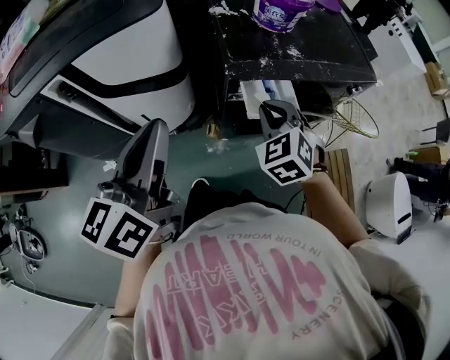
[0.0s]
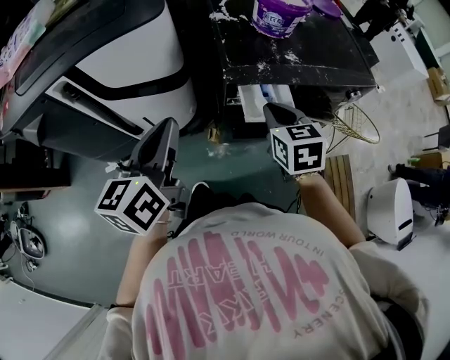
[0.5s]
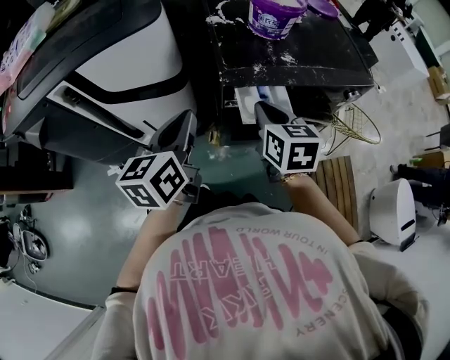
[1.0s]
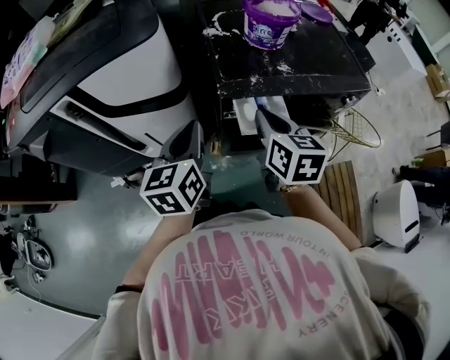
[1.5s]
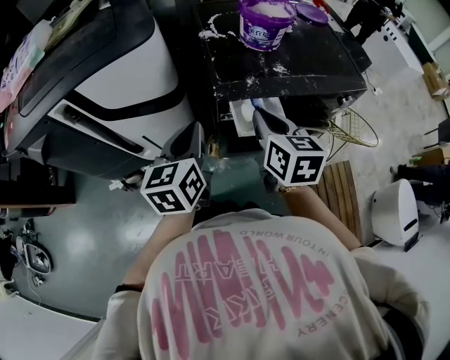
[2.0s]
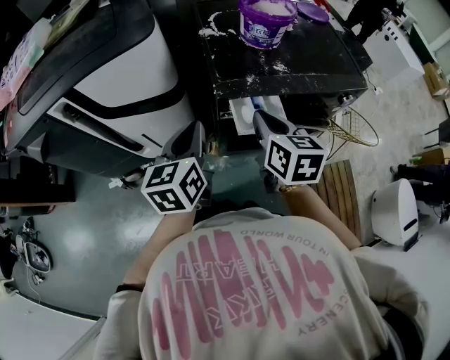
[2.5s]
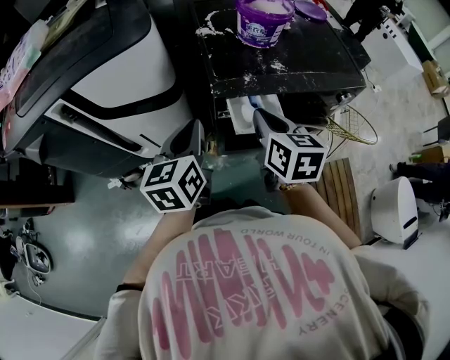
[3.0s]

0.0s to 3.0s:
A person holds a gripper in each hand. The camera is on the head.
0.0s to 1.5s: The right gripper moves roughly 5 cm, and rolls clockwise, seen from behind, by roughly 50 degrees. The left gripper shifts some 15 cm downward, to the right and forward.
1.5s to 3.0s: The grippers move only a little.

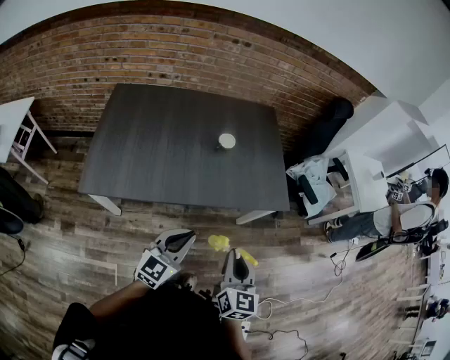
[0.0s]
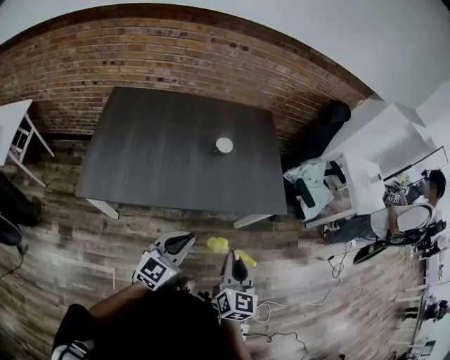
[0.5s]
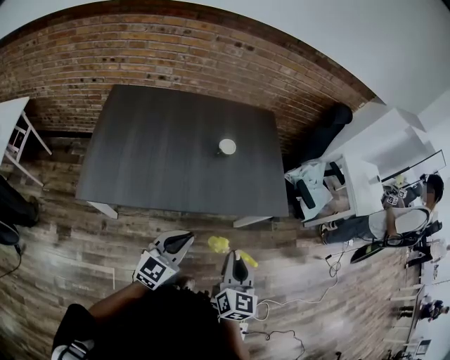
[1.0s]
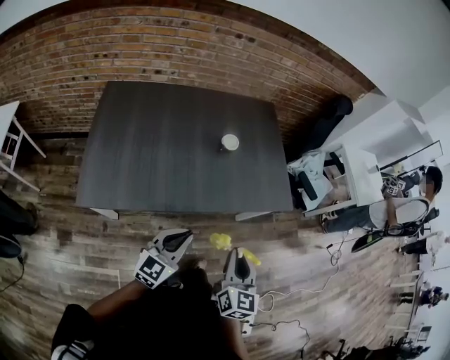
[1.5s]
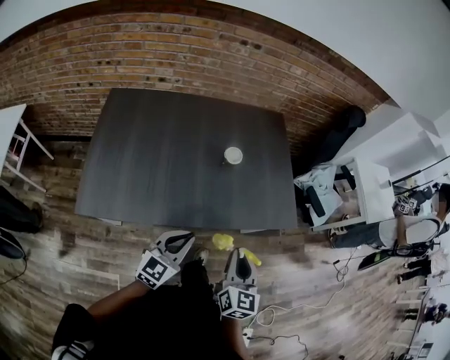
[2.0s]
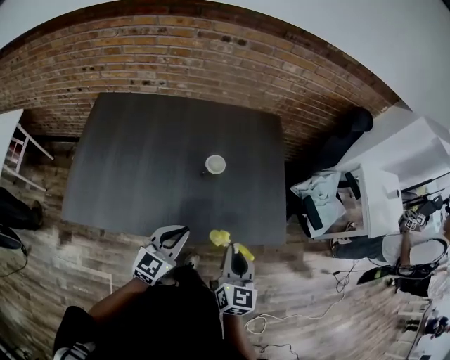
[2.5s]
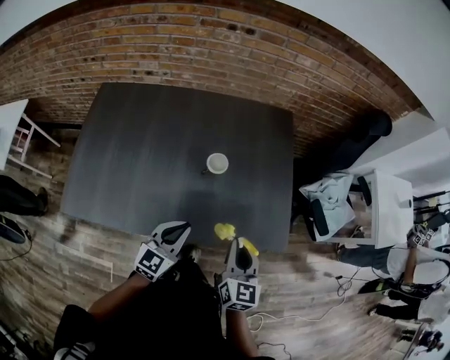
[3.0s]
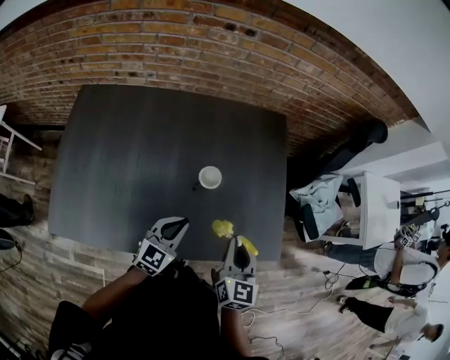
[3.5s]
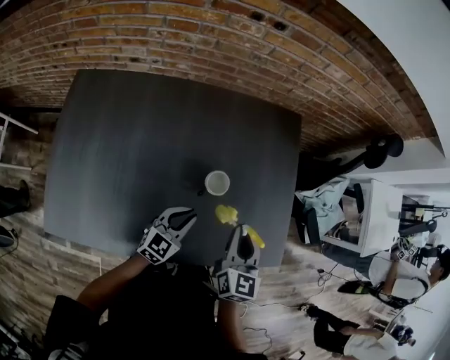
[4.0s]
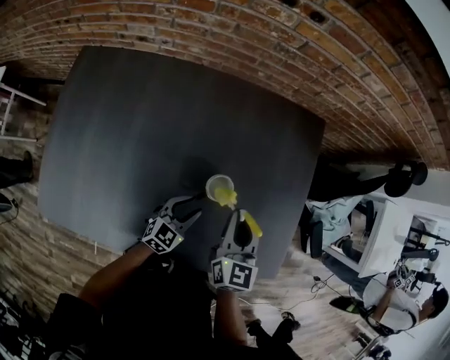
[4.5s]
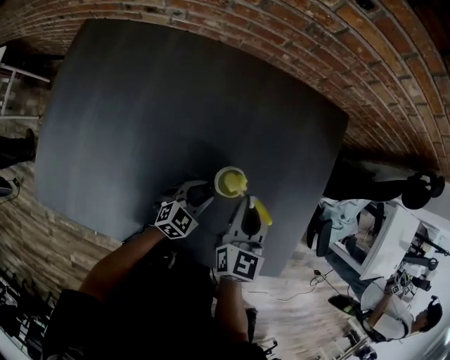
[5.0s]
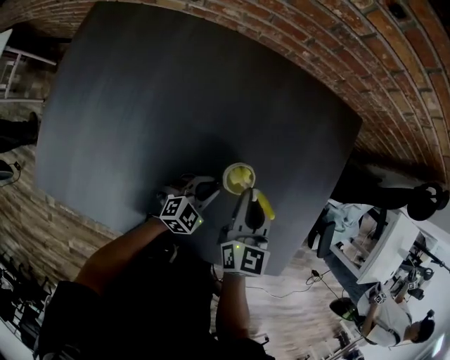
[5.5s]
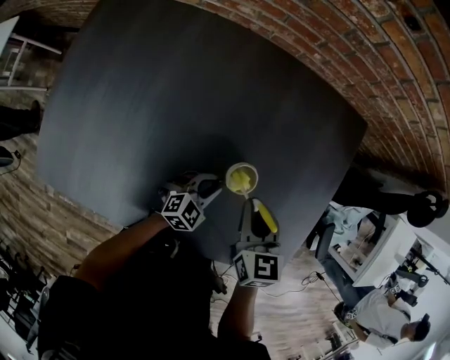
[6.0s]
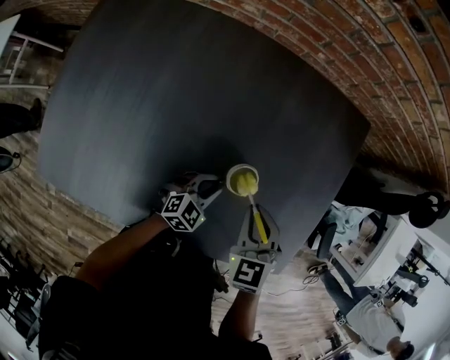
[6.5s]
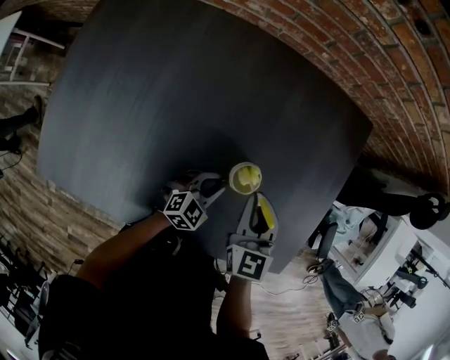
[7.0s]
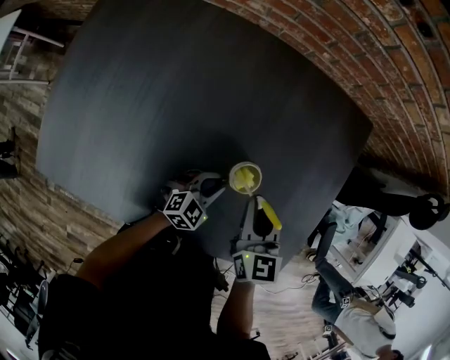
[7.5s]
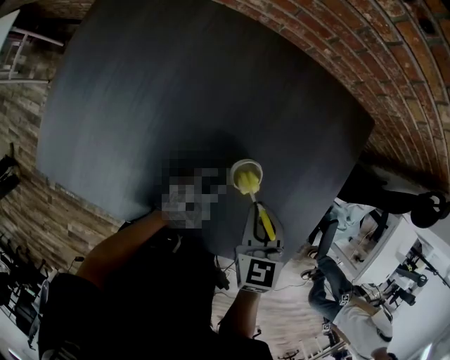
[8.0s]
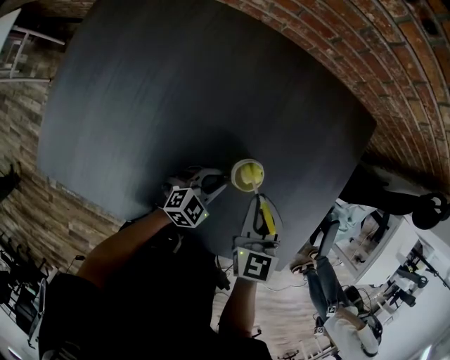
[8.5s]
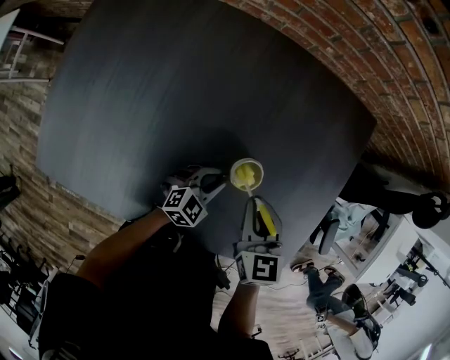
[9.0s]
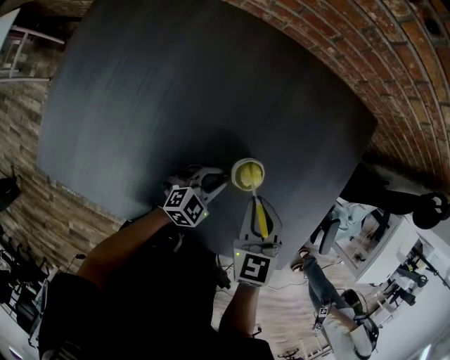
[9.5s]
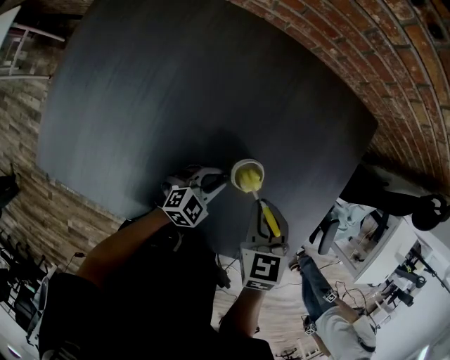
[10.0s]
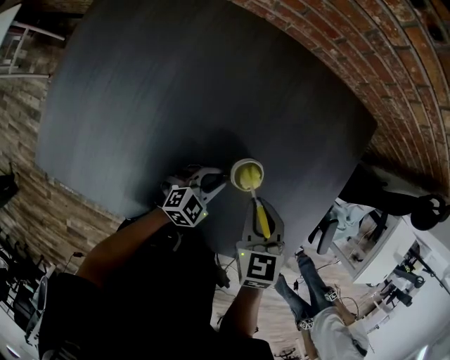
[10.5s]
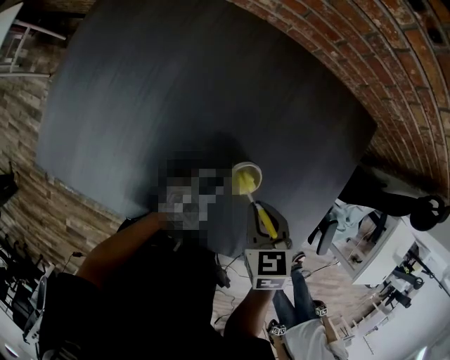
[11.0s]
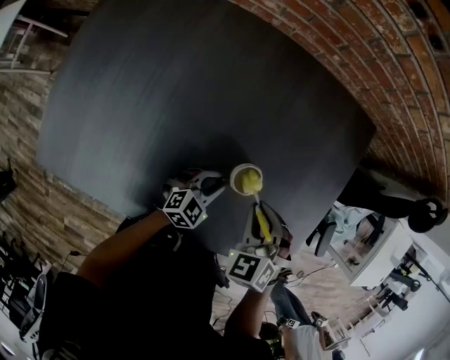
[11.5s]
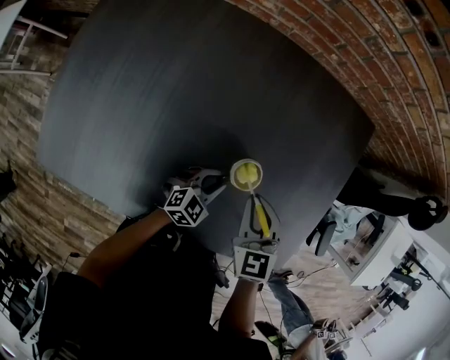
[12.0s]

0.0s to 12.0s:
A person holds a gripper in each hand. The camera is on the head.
0.0s to 2.0s: Both grippers travel together forward and to the left, approximately 15 cm.
2.0s to 4.0s: The two grippers go roughly 35 cm forward.
4.0s to 6.0s: The right gripper is displaced downward, forward and to the left by some 15 cm, and rotates roughly 30 degrees; the left gripper is displaced downward and forward by roughly 20 cm.
8.0s to 10.0s: There are only small adjustments of the grippers.

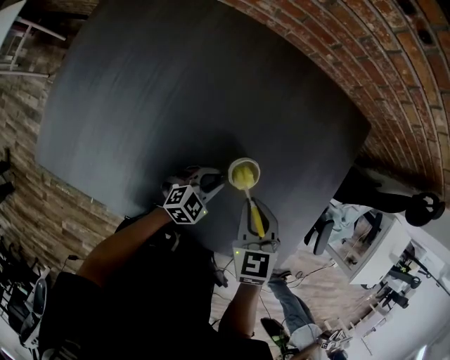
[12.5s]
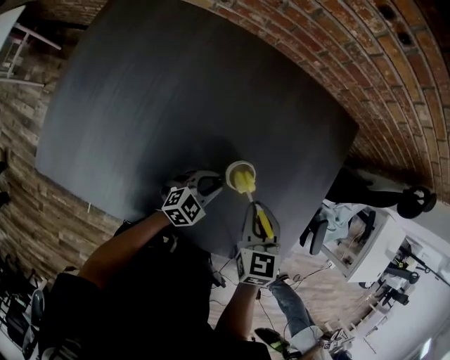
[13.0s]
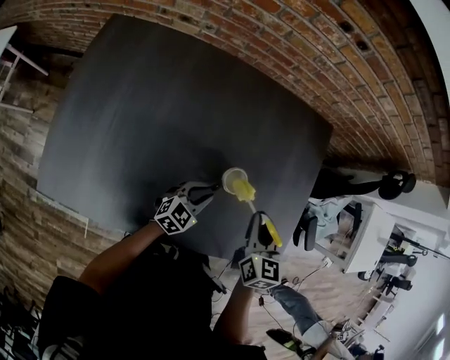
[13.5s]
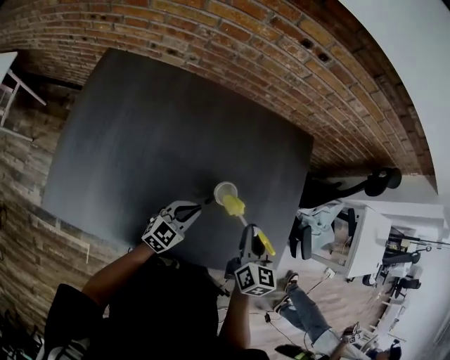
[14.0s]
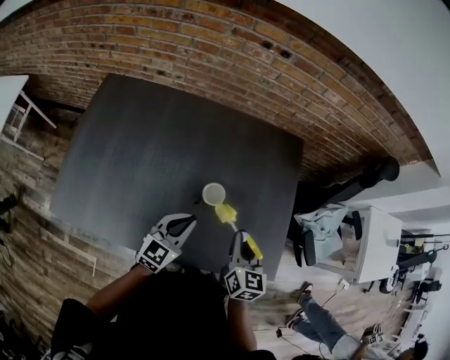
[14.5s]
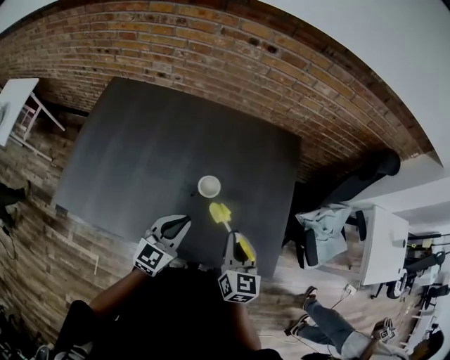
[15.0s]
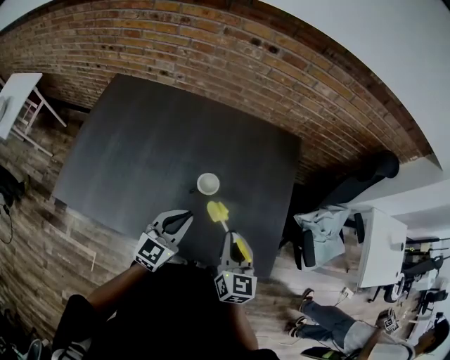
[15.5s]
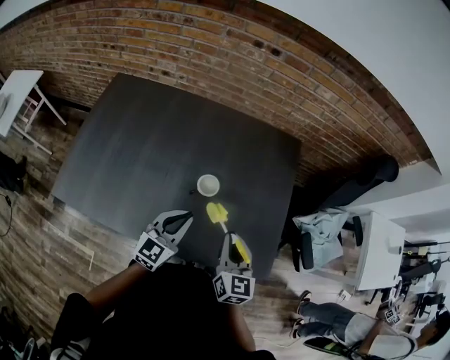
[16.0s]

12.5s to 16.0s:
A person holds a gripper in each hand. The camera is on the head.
12.5s to 14.5s: The left gripper moves upward, about 25 cm, and rotates approximately 30 degrees. The right gripper goes approximately 20 cm upward, to the right and backward, and swivels about 40 degrees.
14.5s to 16.0s: The right gripper moves backward, some 5 cm; the left gripper changes place by approximately 5 cm.

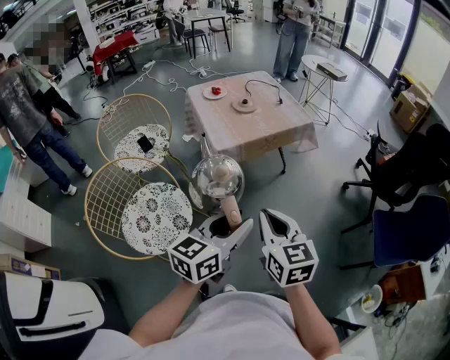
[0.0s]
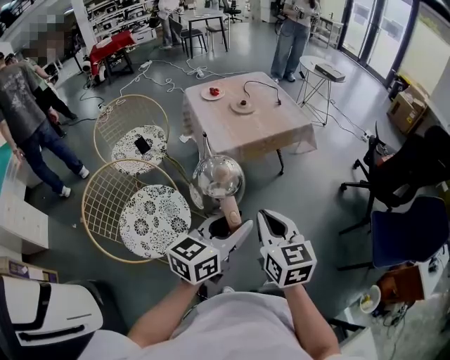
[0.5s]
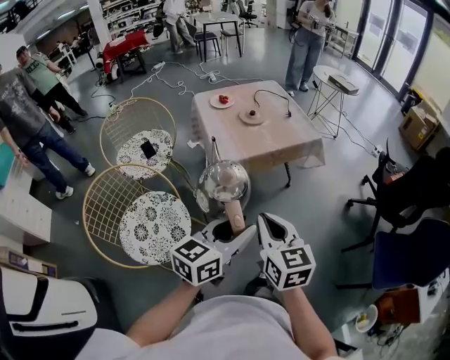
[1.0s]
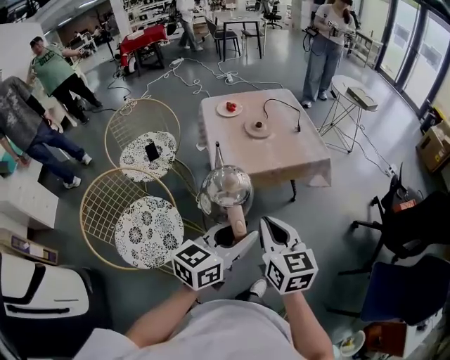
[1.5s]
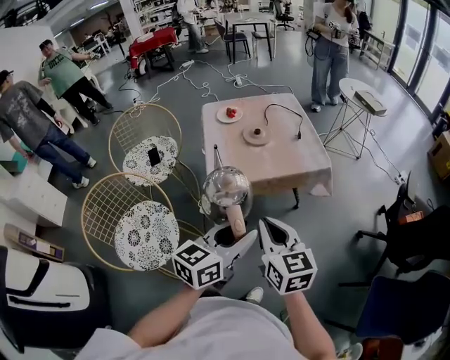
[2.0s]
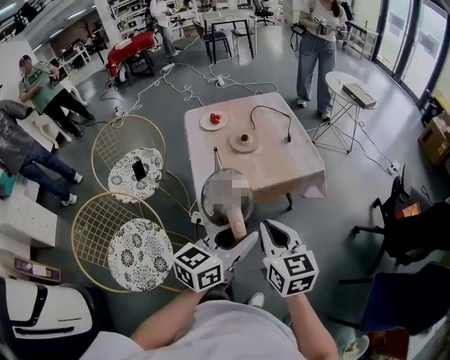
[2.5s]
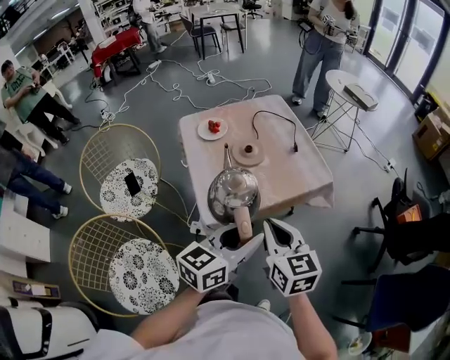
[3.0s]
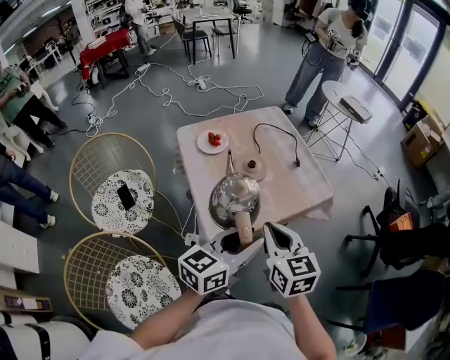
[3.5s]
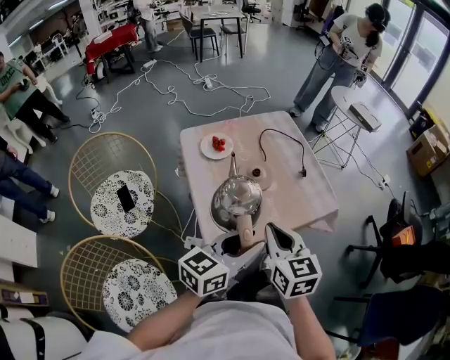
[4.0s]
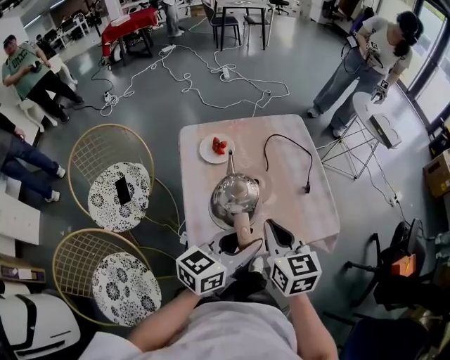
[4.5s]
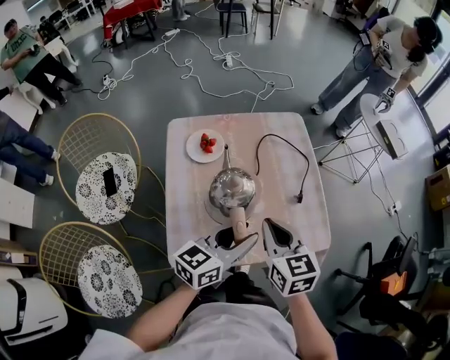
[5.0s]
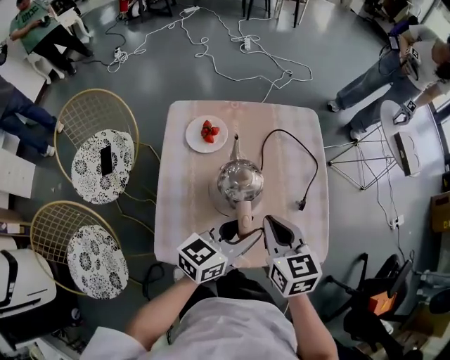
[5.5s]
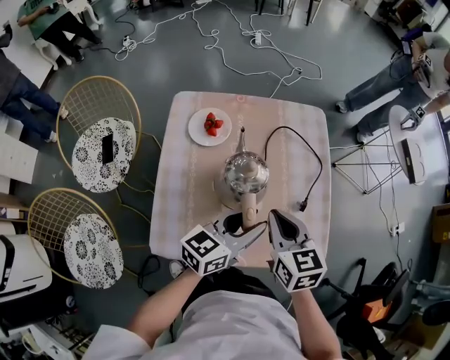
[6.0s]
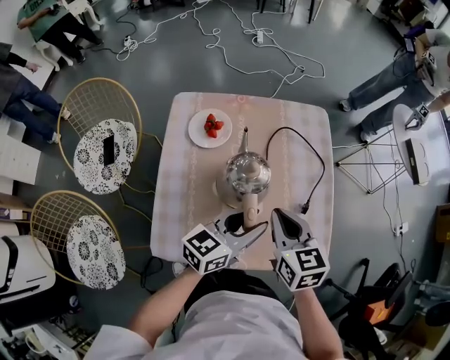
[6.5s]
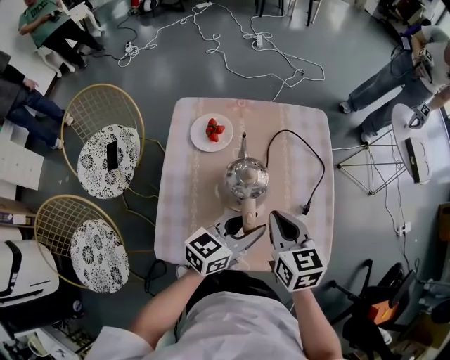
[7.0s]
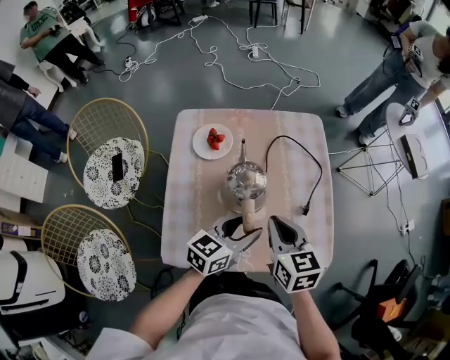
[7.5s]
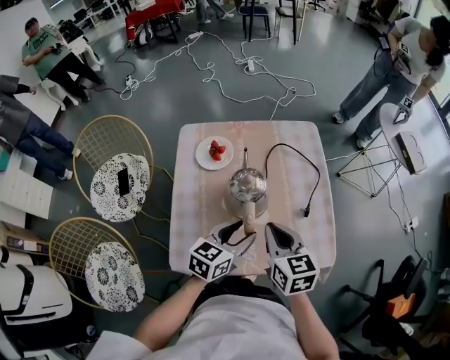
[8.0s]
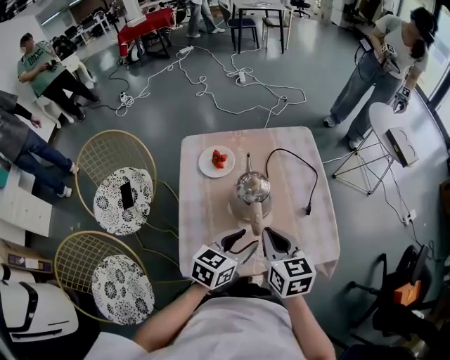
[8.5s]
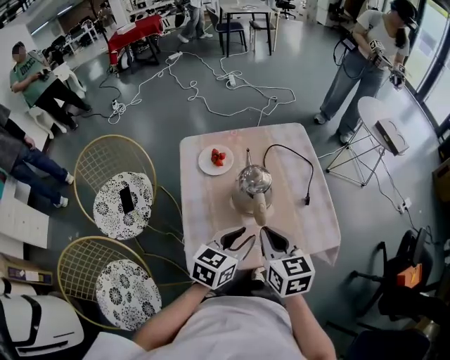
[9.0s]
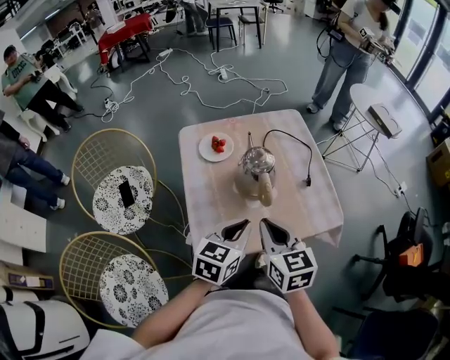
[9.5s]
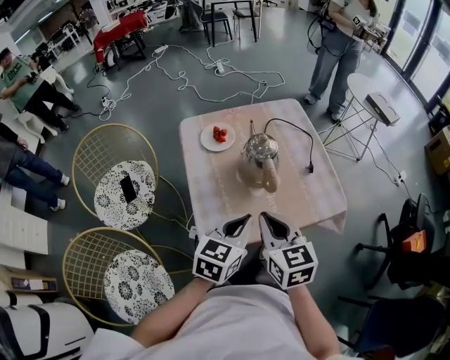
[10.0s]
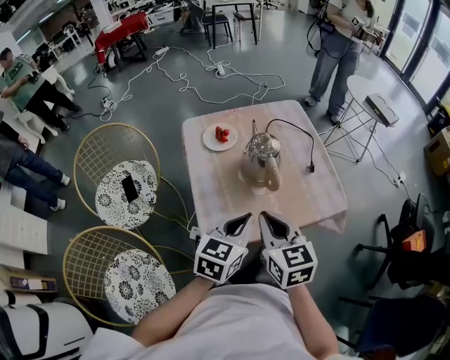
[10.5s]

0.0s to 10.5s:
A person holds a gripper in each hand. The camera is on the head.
0.0s to 2.0s: The right gripper shifts some 20 cm forward. The left gripper shifts about 25 cm forward and to the right.
2.0s to 4.0s: The two grippers go roughly 30 cm forward and to the left.
4.0s to 6.5s: The right gripper heads forward and downward, covering about 25 cm, and changes its angle by approximately 20 degrees; the left gripper heads forward, downward and to the right, covering approximately 30 cm.
6.5s to 8.5s: The right gripper travels backward by about 5 cm, while the left gripper shifts approximately 10 cm backward and to the left.
8.5s to 10.5s: The left gripper heads backward, to the left and upward, covering some 15 cm, and closes; the right gripper travels backward and to the left by some 15 cm.
